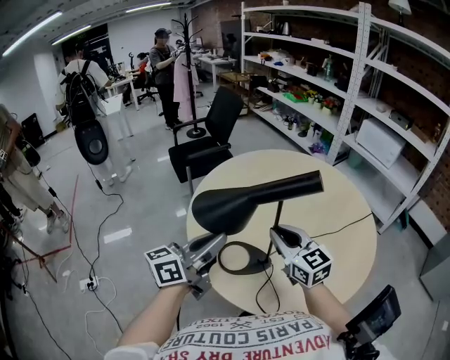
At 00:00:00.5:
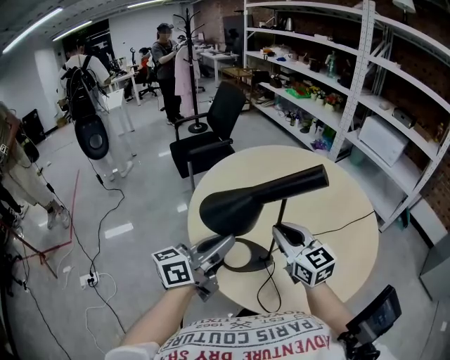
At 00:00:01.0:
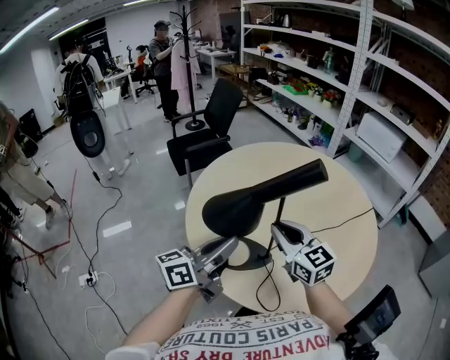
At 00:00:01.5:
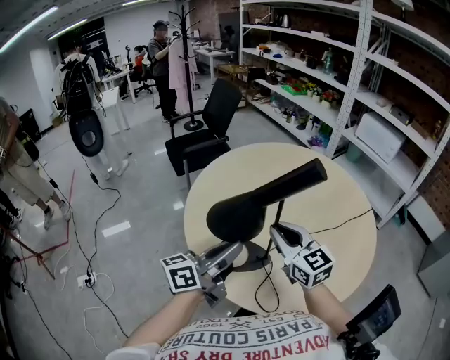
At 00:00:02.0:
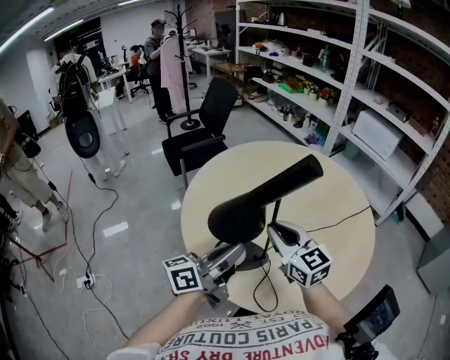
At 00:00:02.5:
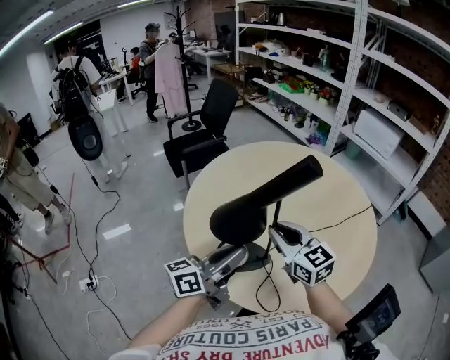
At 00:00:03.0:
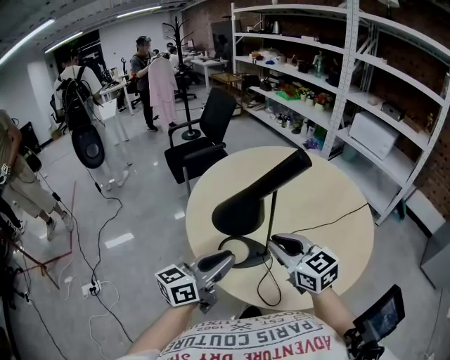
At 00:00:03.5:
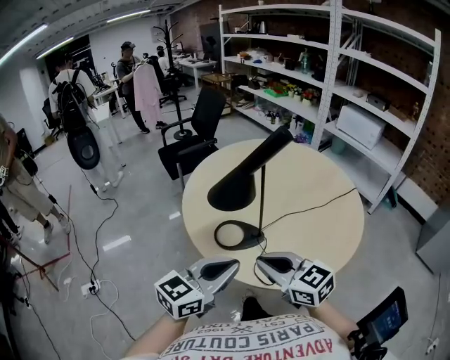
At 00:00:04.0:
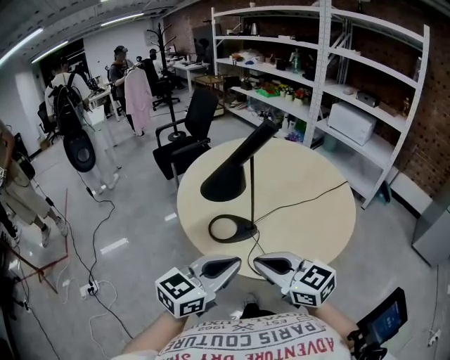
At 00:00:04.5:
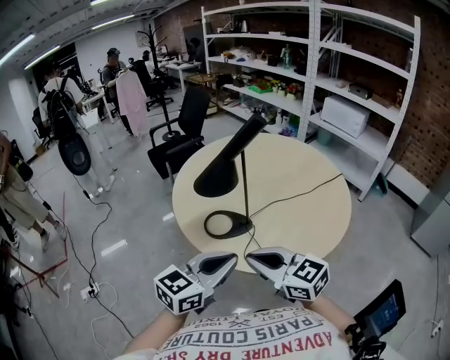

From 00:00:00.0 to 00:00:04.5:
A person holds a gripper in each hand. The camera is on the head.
From 00:00:00.0 to 00:00:02.0: The left gripper goes about 5 cm to the right.
From 00:00:02.0 to 00:00:04.5: Both grippers travel together backward, some 20 cm. The left gripper rotates roughly 40 degrees.

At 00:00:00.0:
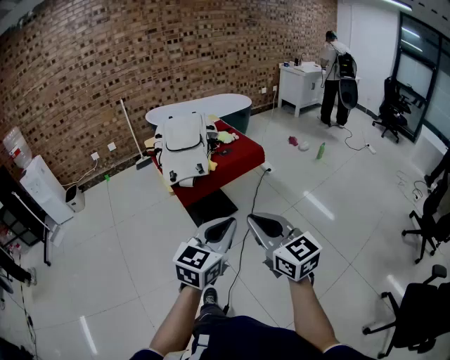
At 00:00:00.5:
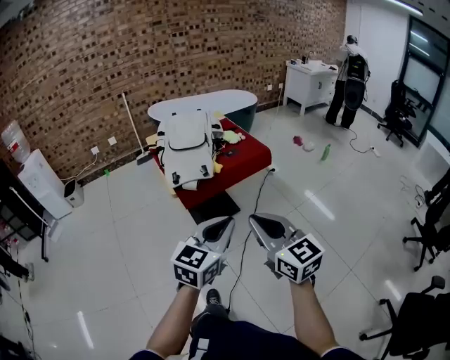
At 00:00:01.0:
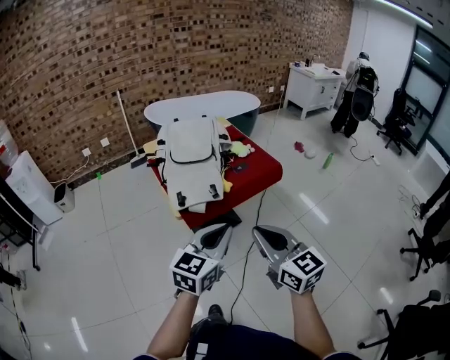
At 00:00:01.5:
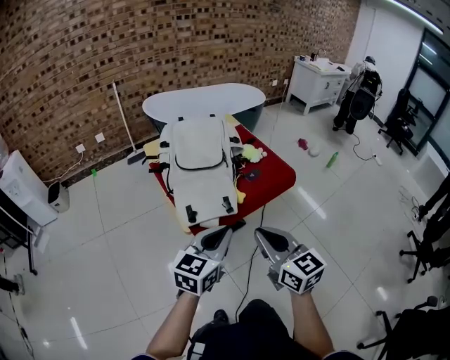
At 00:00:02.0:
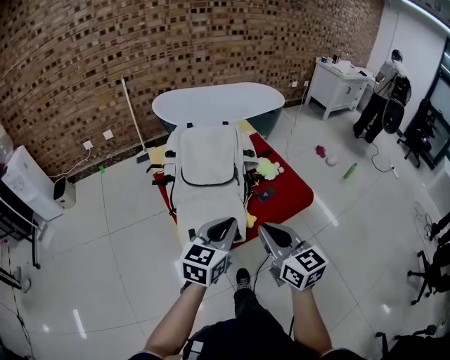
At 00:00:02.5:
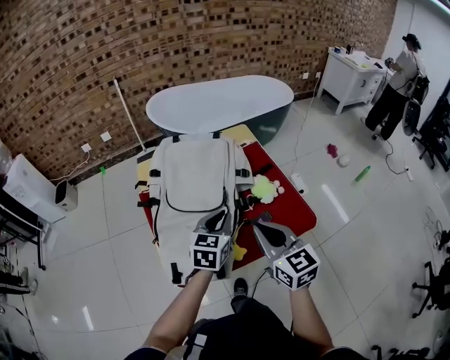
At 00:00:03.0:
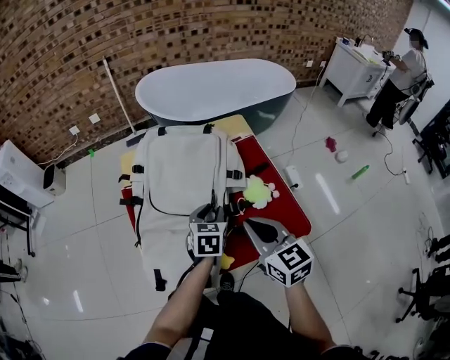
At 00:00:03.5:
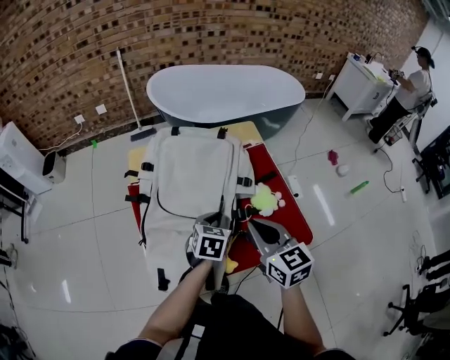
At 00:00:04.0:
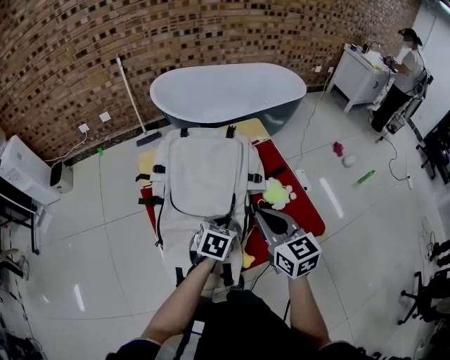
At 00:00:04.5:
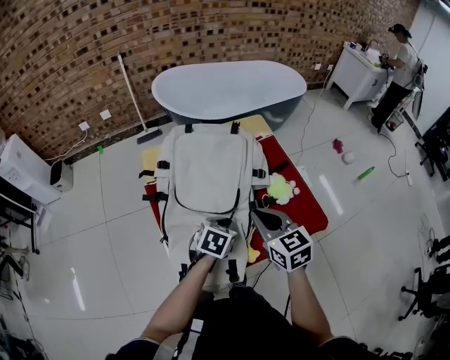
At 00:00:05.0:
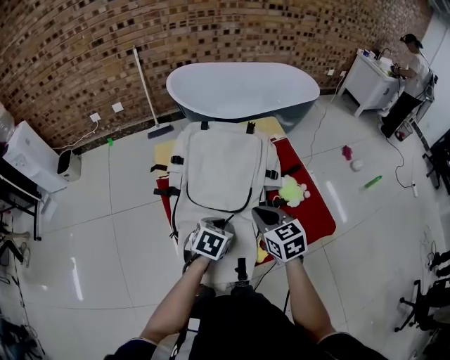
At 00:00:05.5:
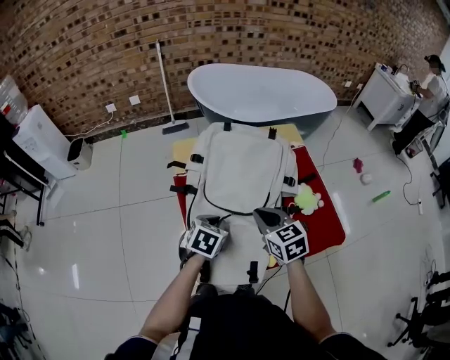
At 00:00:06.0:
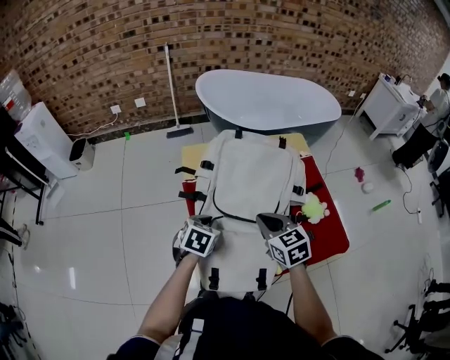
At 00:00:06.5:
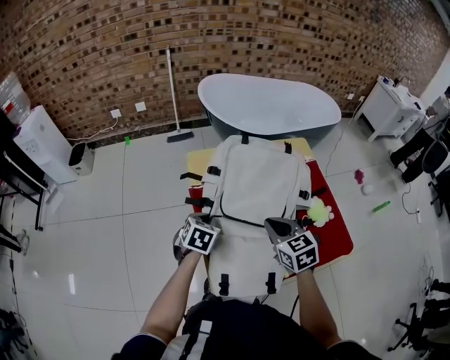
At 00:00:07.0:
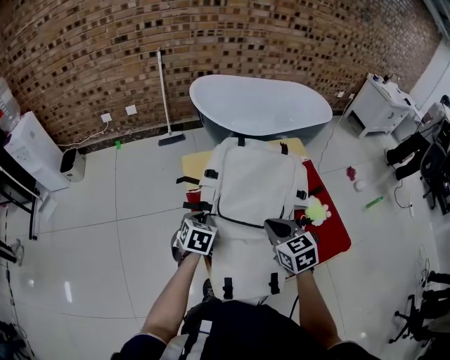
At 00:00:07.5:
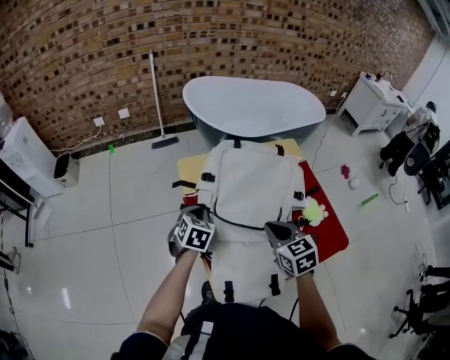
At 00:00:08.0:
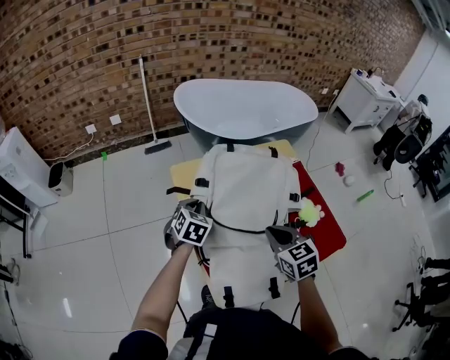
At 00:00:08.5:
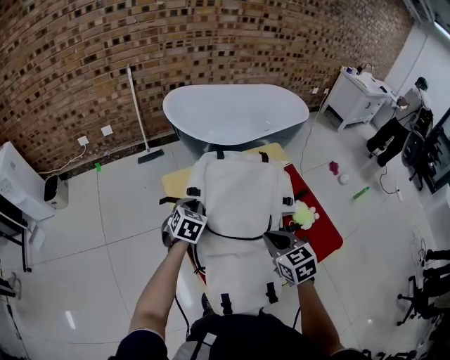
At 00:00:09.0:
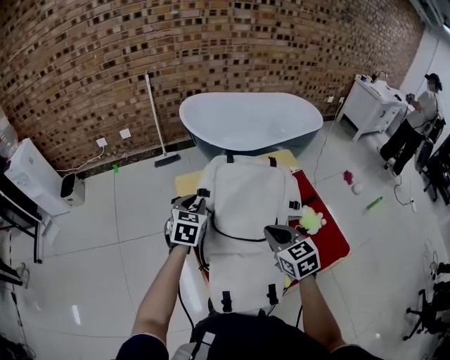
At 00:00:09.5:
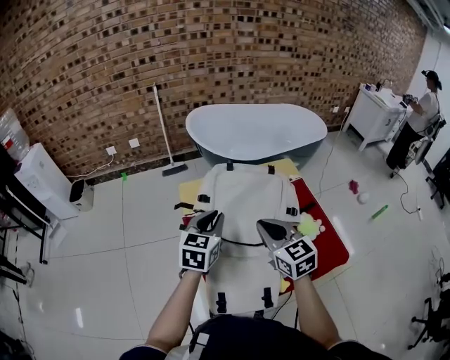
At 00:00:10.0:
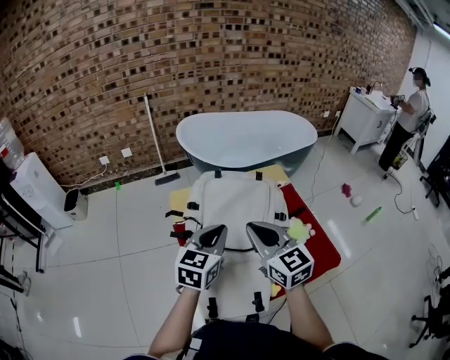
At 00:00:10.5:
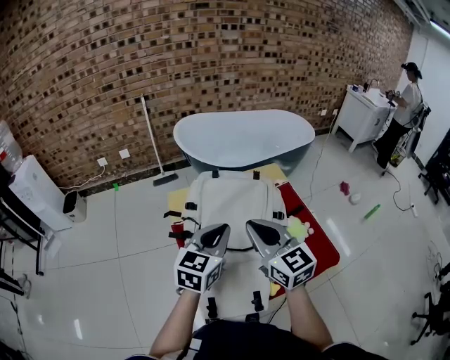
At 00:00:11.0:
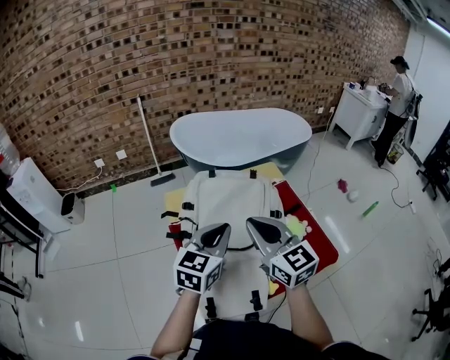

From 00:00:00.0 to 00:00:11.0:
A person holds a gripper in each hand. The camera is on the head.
From 00:00:00.0 to 00:00:02.0: The pair of grippers is taken forward, approximately 40 cm.
From 00:00:02.0 to 00:00:03.5: The left gripper shifts roughly 30 cm forward and downward, points its fingers about 30 degrees further downward, and opens, then closes once more; the right gripper heads forward, covering some 20 cm.
From 00:00:03.5 to 00:00:05.5: The left gripper goes approximately 15 cm to the left; the right gripper heads to the left and downward, covering approximately 15 cm.
From 00:00:05.5 to 00:00:07.5: The left gripper goes some 15 cm to the left and forward.
From 00:00:07.5 to 00:00:09.0: The left gripper heads upward and forward, covering some 10 cm.
From 00:00:09.0 to 00:00:11.0: The left gripper goes about 25 cm to the right, upward and backward, swivels some 30 degrees, and closes up. The right gripper shifts roughly 15 cm upward, and turns by roughly 30 degrees.

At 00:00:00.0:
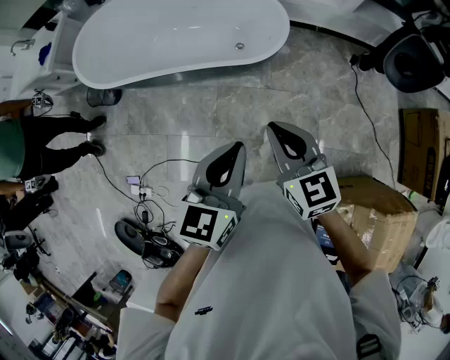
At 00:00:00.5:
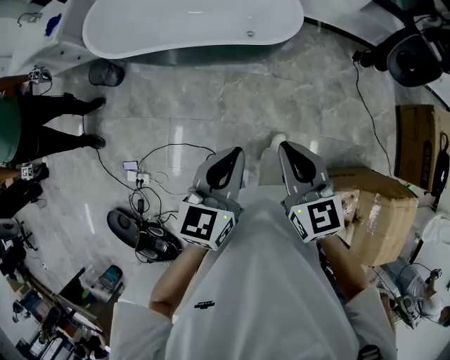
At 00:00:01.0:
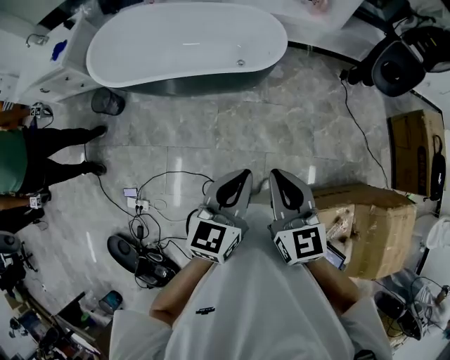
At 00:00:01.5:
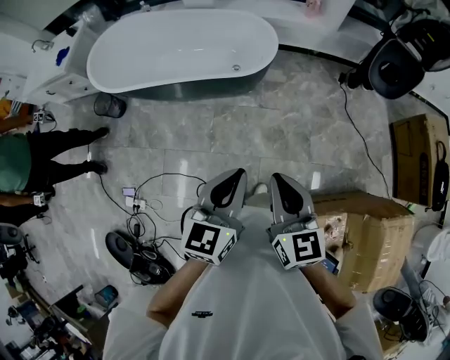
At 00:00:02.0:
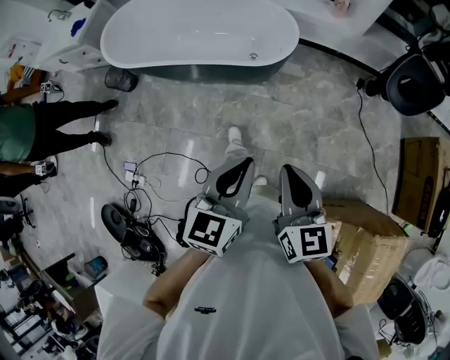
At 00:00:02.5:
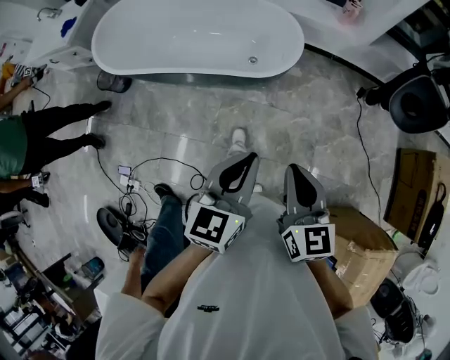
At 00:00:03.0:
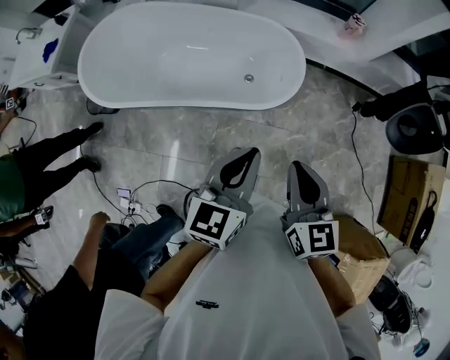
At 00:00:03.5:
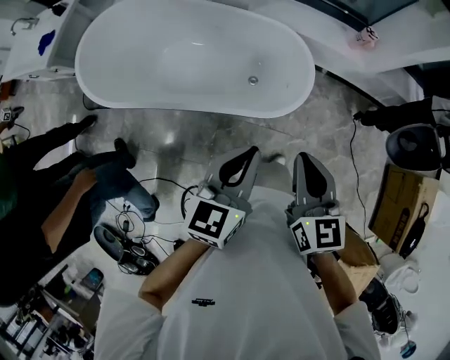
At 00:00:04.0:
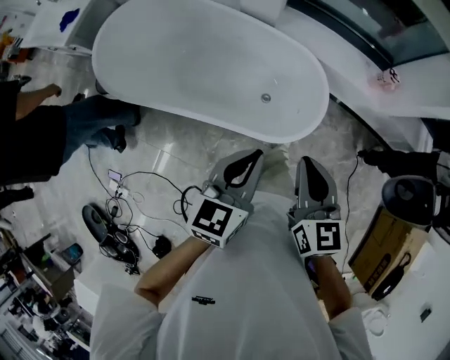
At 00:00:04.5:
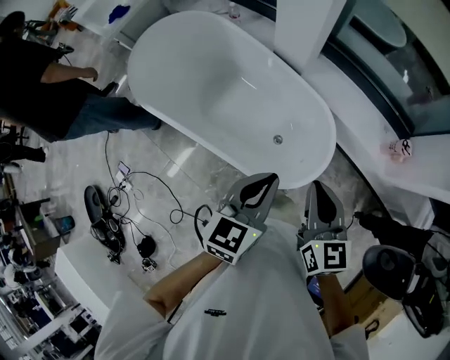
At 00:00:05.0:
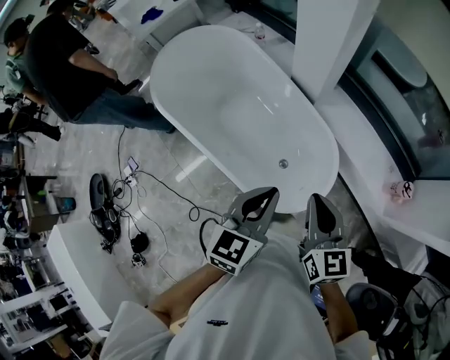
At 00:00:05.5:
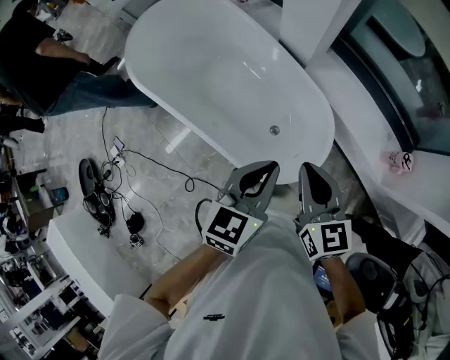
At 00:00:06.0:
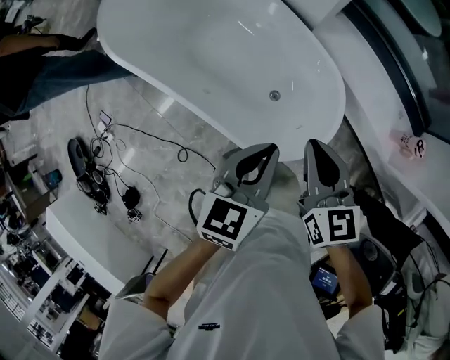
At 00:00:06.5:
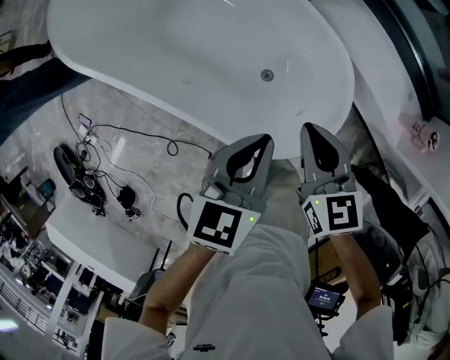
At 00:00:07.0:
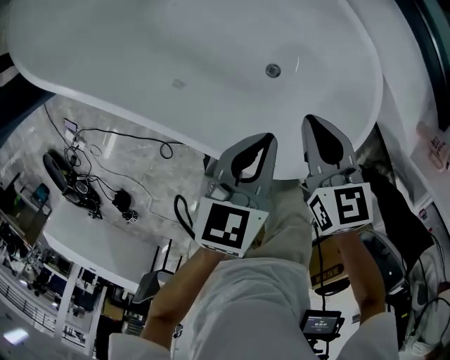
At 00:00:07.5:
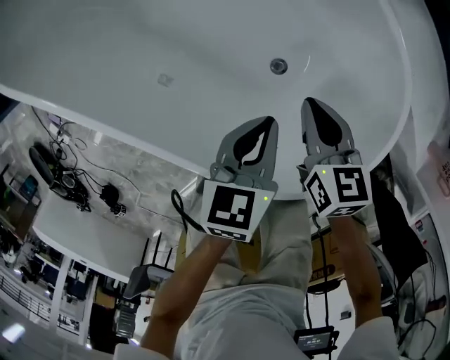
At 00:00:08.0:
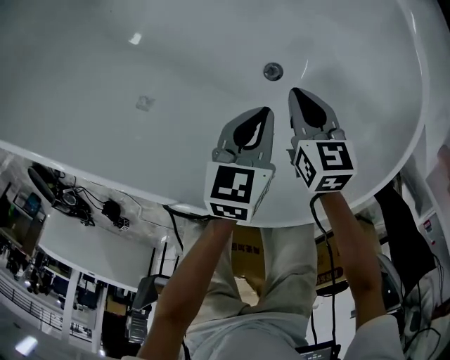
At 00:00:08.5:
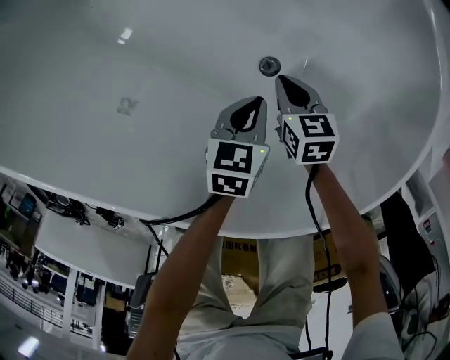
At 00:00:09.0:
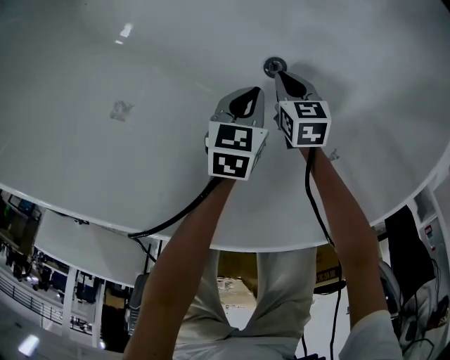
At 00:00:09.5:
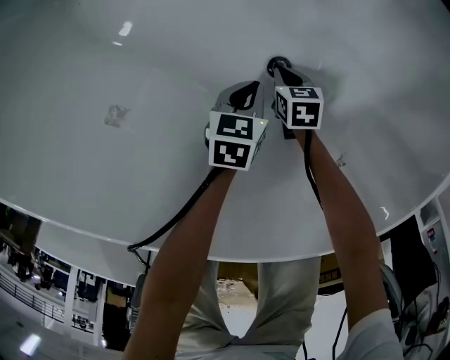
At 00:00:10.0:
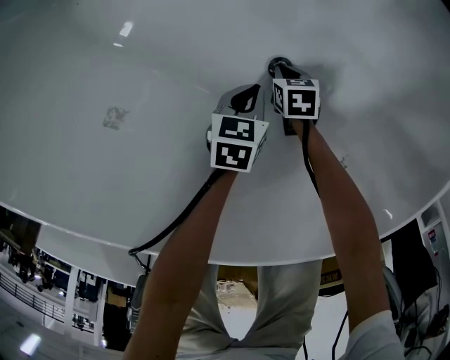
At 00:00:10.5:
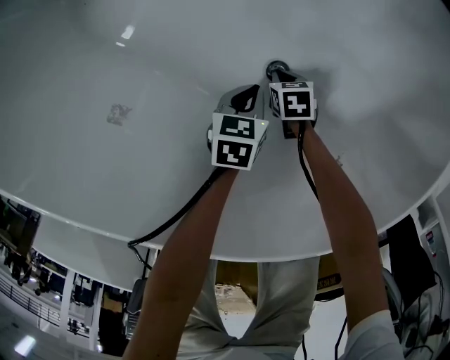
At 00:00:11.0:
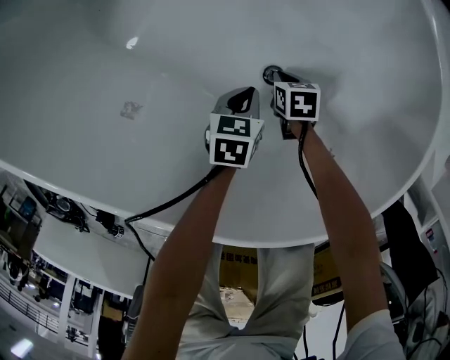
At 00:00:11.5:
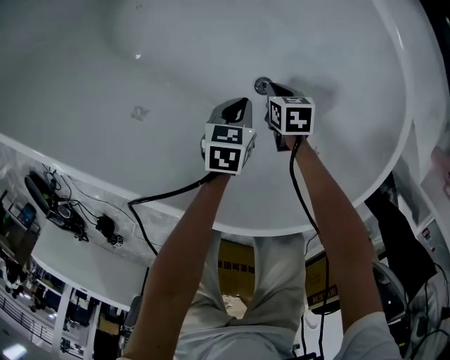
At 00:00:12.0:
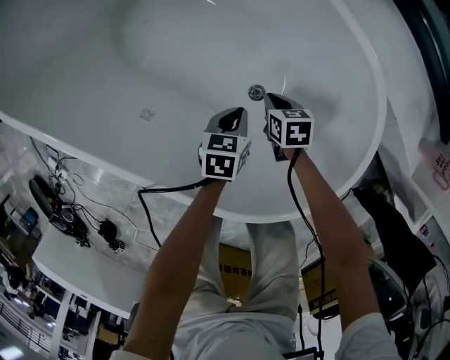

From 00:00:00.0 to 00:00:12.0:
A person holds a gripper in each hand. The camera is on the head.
From 00:00:00.0 to 00:00:02.0: Both grippers travel together backward and to the right, about 15 cm.
From 00:00:02.0 to 00:00:04.0: Both grippers are carried forward, approximately 50 cm.
From 00:00:04.0 to 00:00:06.0: The right gripper shifts roughly 25 cm forward and downward, and swivels some 30 degrees. The left gripper heads forward, to the right and downward, covering some 20 cm, and rotates roughly 20 degrees.
From 00:00:06.0 to 00:00:08.0: Both grippers move downward, roughly 60 cm. The left gripper rotates roughly 20 degrees, while the right gripper swivels some 30 degrees.
From 00:00:08.0 to 00:00:10.0: The two grippers go some 25 cm downward. The right gripper swivels approximately 20 degrees.
From 00:00:10.0 to 00:00:12.0: Both grippers move upward, approximately 20 cm.
